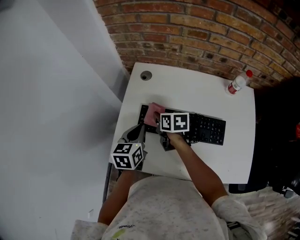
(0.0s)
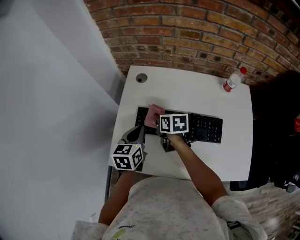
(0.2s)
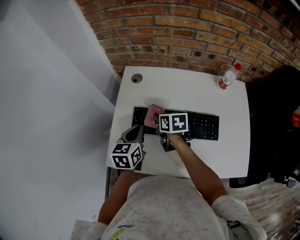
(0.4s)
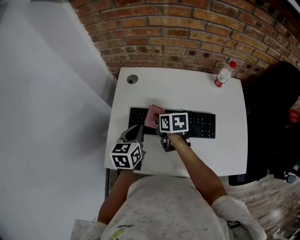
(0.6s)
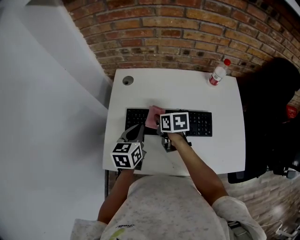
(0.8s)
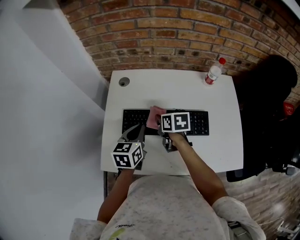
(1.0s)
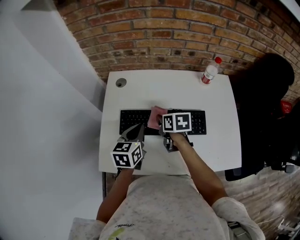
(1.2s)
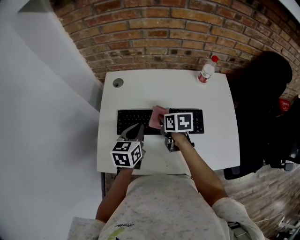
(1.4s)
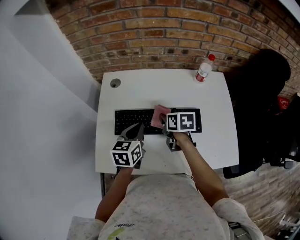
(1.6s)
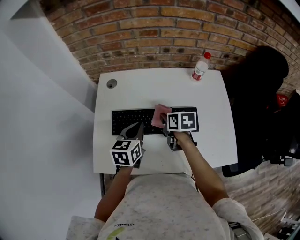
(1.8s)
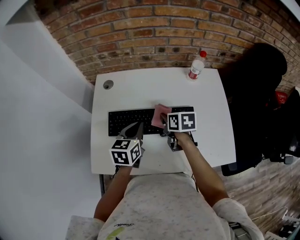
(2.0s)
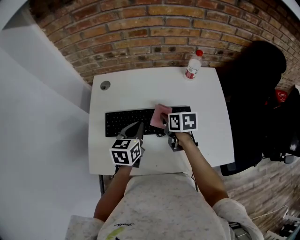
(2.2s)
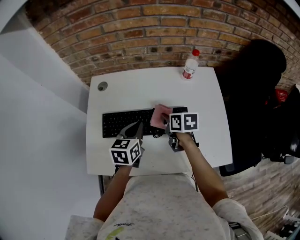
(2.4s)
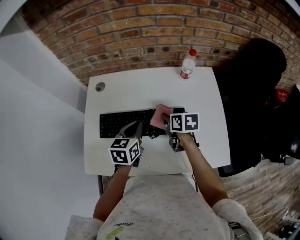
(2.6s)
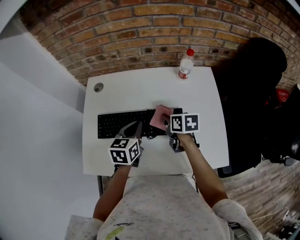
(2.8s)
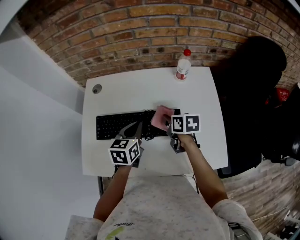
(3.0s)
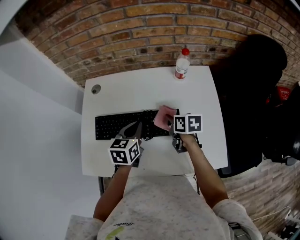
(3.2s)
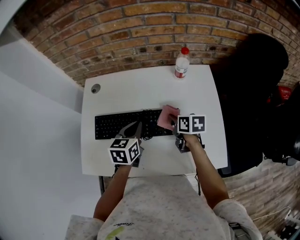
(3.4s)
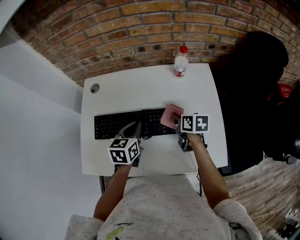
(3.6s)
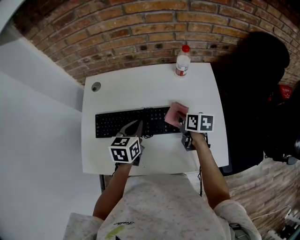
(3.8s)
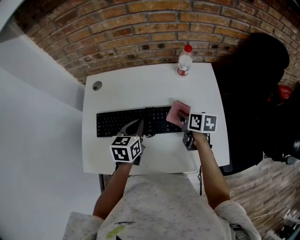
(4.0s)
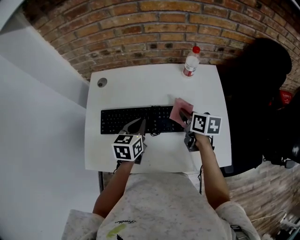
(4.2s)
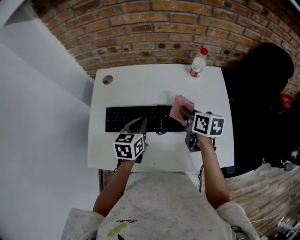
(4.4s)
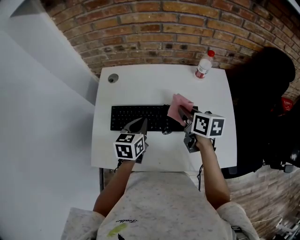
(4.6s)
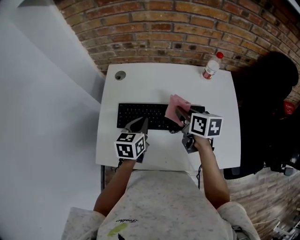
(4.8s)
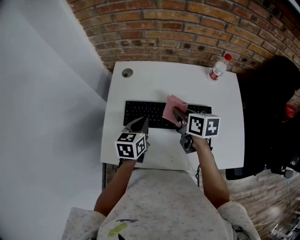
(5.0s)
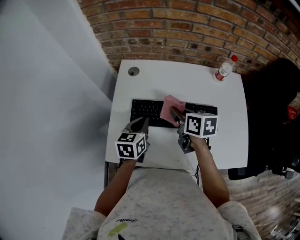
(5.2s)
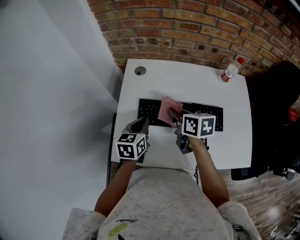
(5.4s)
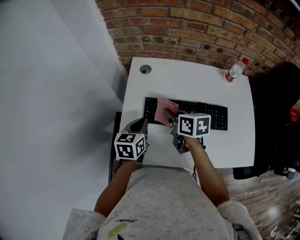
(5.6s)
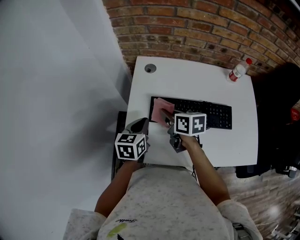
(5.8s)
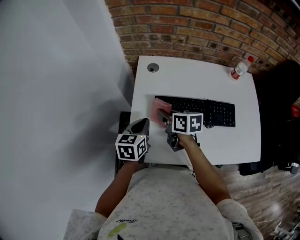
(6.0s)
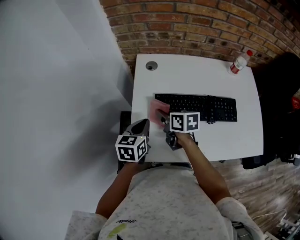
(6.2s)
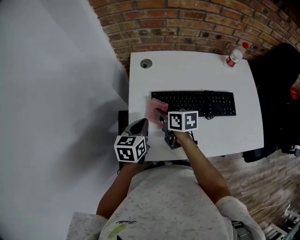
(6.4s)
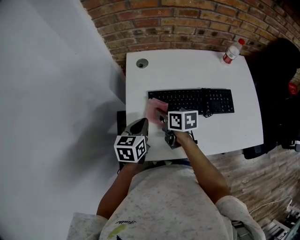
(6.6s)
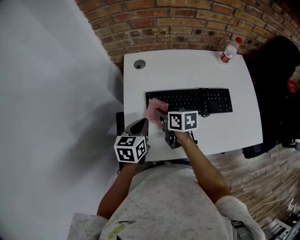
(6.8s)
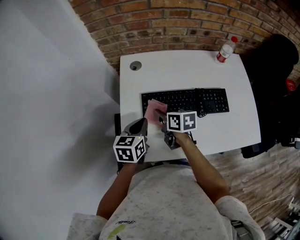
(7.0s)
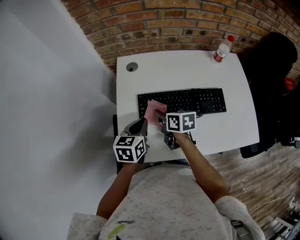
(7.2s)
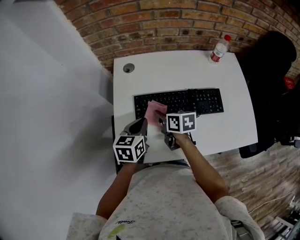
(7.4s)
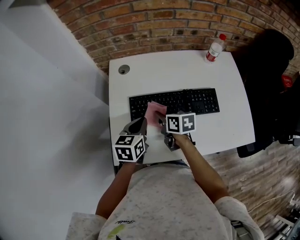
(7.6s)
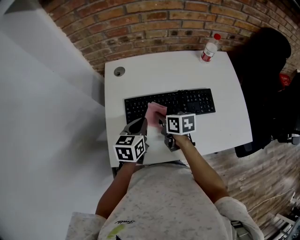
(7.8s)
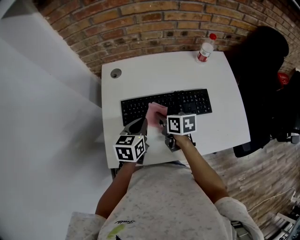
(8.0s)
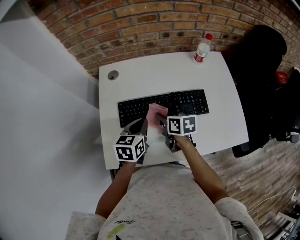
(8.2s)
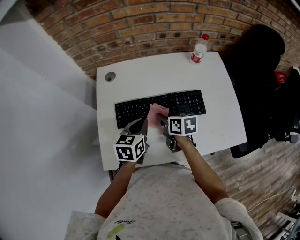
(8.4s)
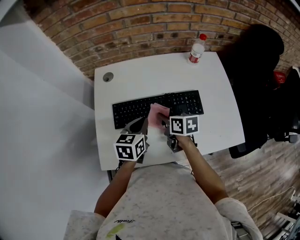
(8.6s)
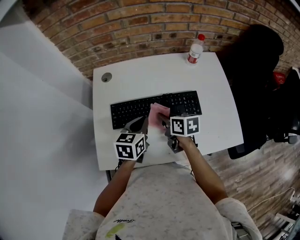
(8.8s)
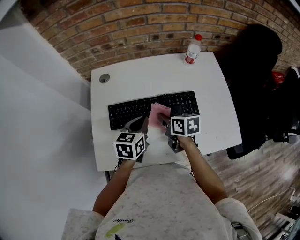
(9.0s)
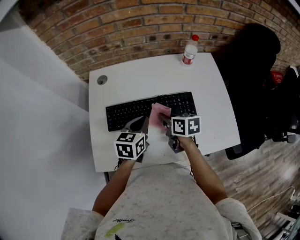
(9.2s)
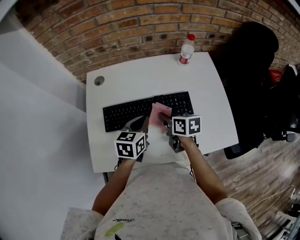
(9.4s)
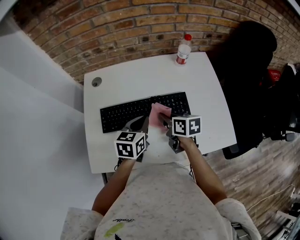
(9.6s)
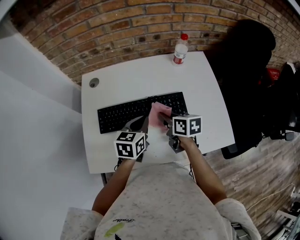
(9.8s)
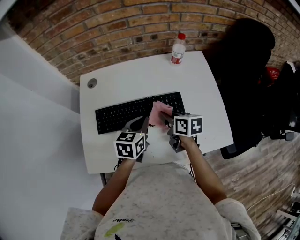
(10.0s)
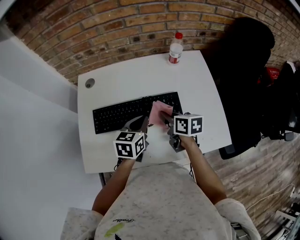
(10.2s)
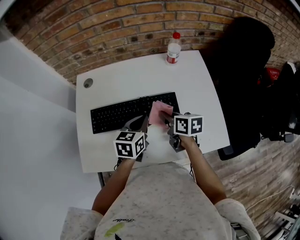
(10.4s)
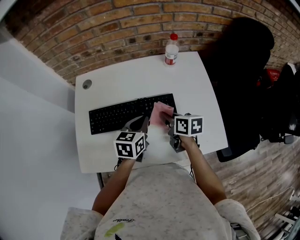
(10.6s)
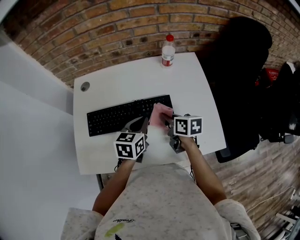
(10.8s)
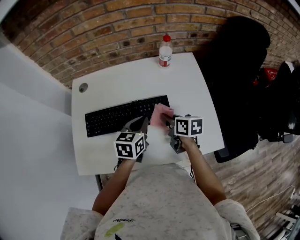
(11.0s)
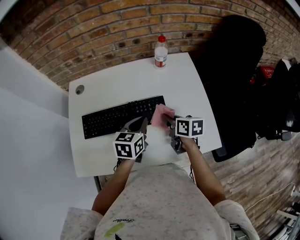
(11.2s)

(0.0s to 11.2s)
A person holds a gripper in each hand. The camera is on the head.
0.0s - 1.6s: Both grippers travel together to the right, roughly 15 cm.
1.6s - 3.2s: Both grippers travel together to the right, some 15 cm.
3.2s - 4.8s: The left gripper shifts roughly 10 cm to the left; the right gripper is displaced to the left and upward by some 15 cm.
4.8s - 6.4s: Both grippers move to the left, roughly 25 cm.
6.4s - 8.0s: Both grippers travel together to the right, some 15 cm.
8.0s - 9.6s: The two grippers go about 15 cm to the right.
9.6s - 11.2s: The grippers both shift to the right by roughly 10 cm.

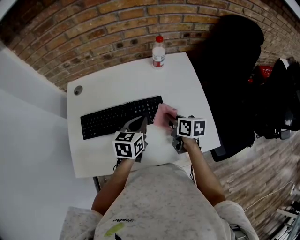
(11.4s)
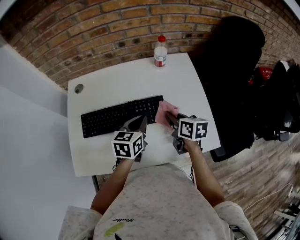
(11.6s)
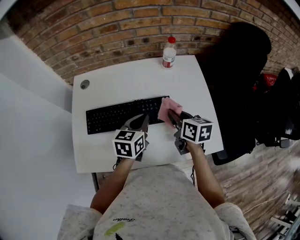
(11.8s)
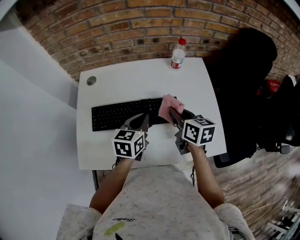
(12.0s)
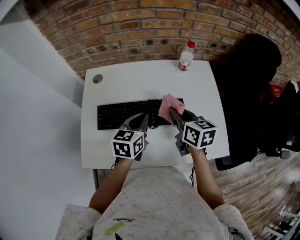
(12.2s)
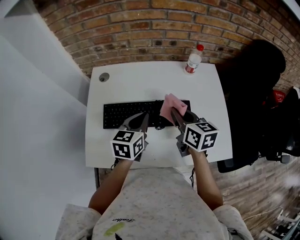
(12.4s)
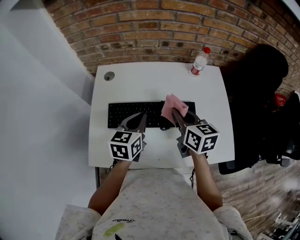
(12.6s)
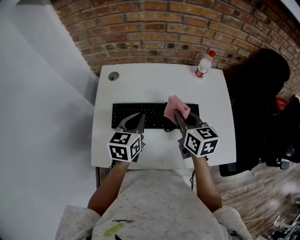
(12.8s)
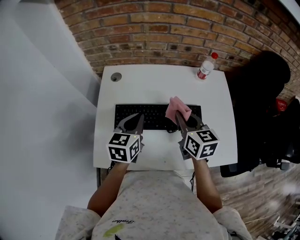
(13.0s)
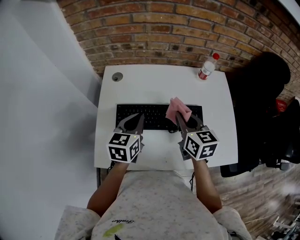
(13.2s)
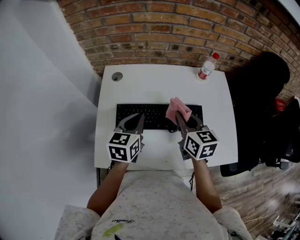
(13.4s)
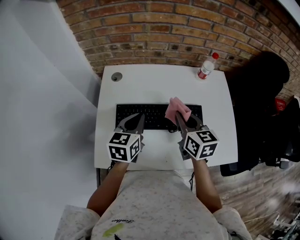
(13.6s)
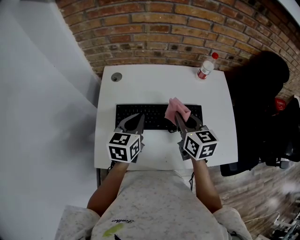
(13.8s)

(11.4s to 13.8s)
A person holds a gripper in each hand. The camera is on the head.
11.4s - 12.6s: The right gripper goes about 20 cm to the left and upward, and turns by roughly 20 degrees; the left gripper heads to the left, covering about 15 cm.
12.6s - 13.8s: The left gripper goes about 5 cm to the left.

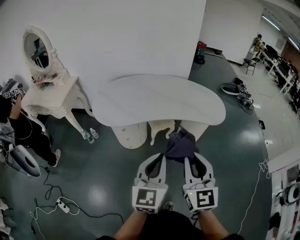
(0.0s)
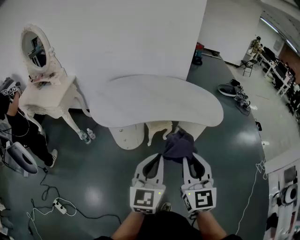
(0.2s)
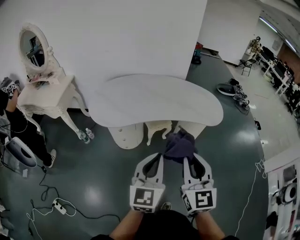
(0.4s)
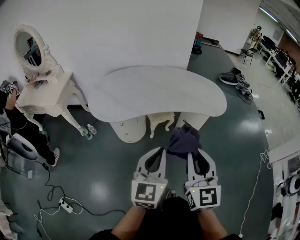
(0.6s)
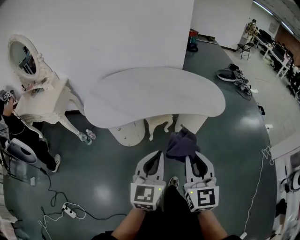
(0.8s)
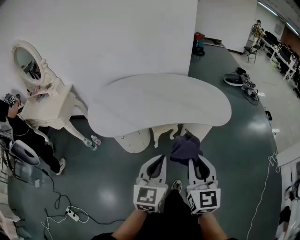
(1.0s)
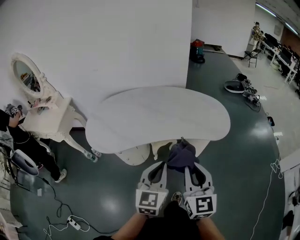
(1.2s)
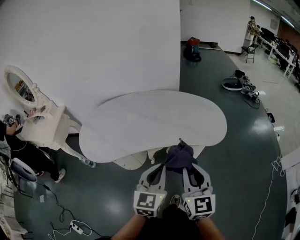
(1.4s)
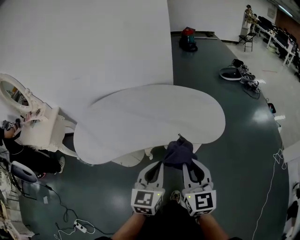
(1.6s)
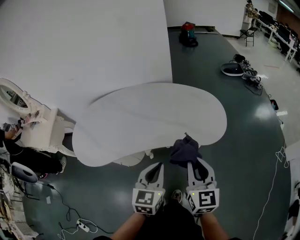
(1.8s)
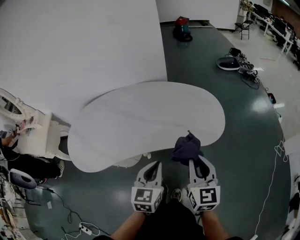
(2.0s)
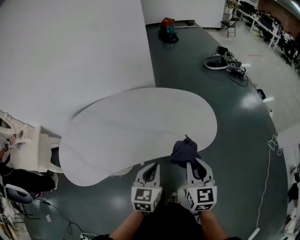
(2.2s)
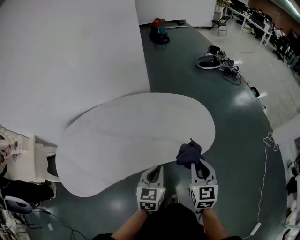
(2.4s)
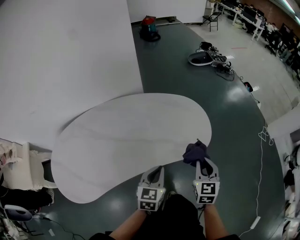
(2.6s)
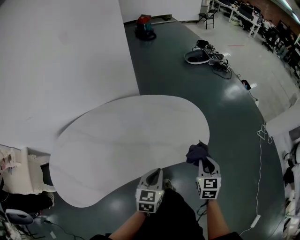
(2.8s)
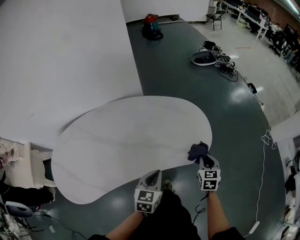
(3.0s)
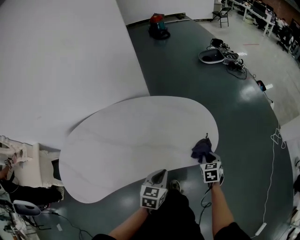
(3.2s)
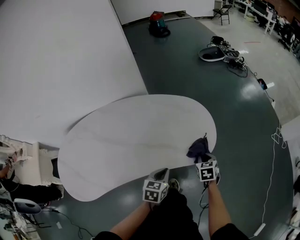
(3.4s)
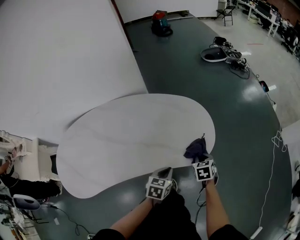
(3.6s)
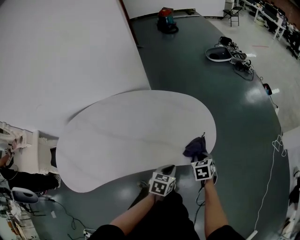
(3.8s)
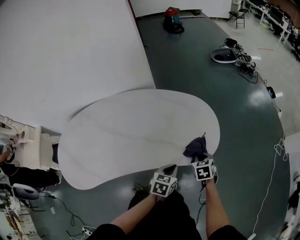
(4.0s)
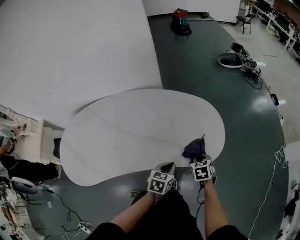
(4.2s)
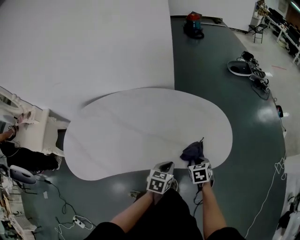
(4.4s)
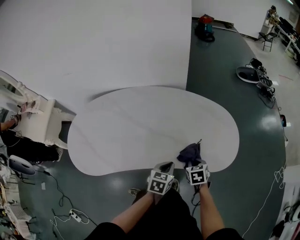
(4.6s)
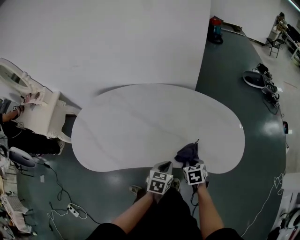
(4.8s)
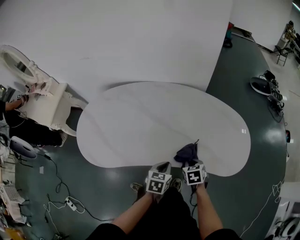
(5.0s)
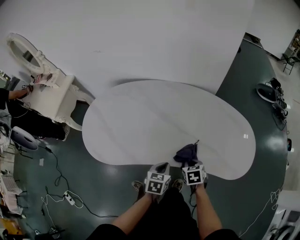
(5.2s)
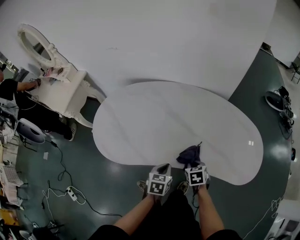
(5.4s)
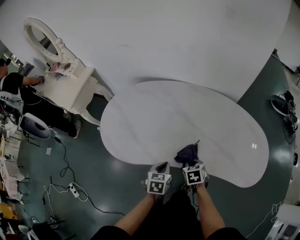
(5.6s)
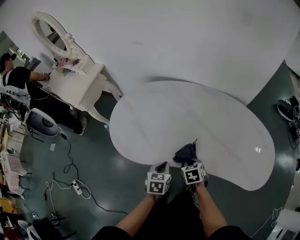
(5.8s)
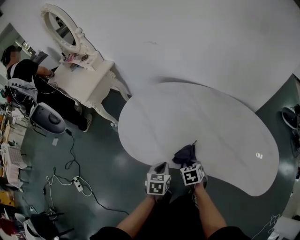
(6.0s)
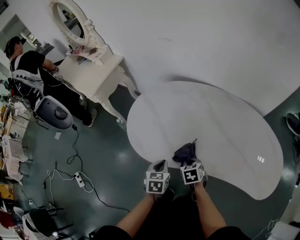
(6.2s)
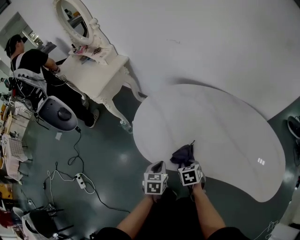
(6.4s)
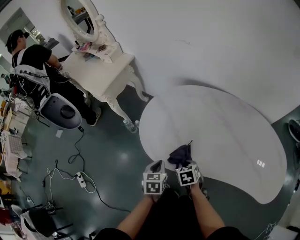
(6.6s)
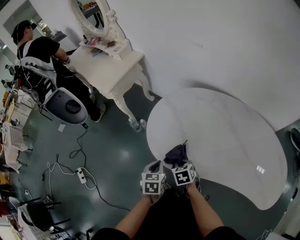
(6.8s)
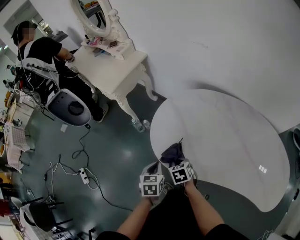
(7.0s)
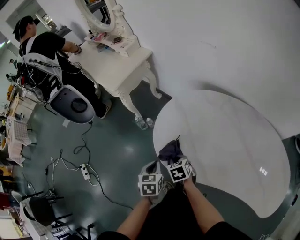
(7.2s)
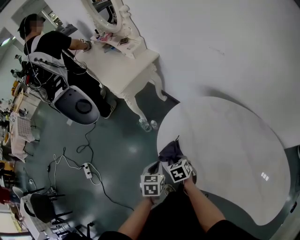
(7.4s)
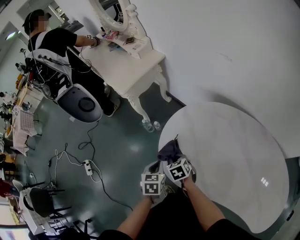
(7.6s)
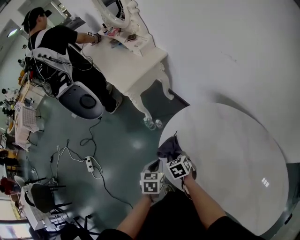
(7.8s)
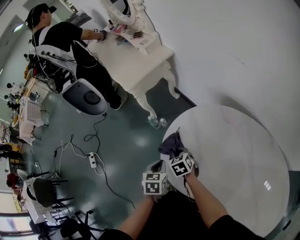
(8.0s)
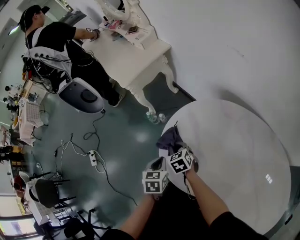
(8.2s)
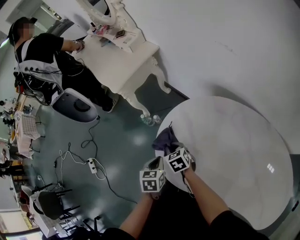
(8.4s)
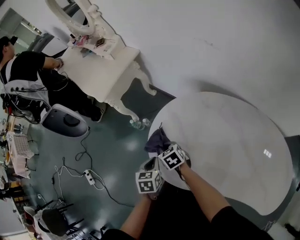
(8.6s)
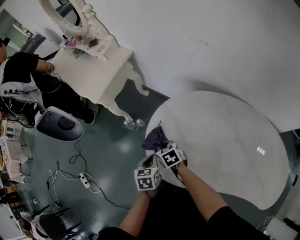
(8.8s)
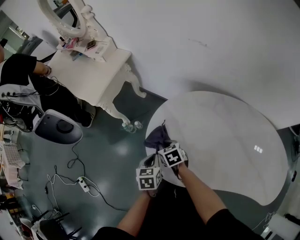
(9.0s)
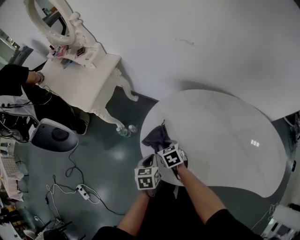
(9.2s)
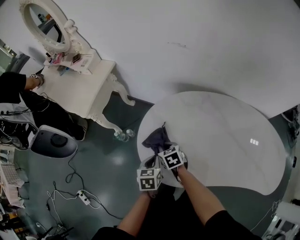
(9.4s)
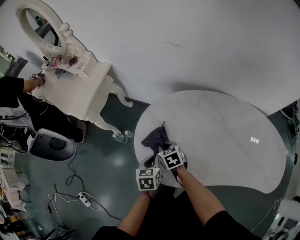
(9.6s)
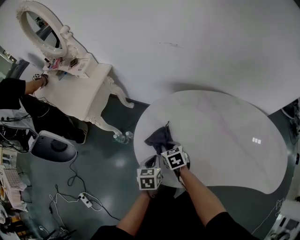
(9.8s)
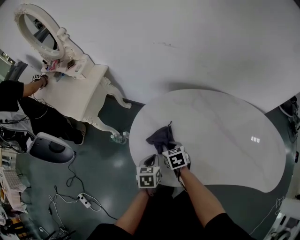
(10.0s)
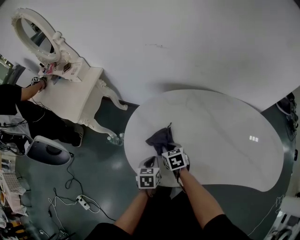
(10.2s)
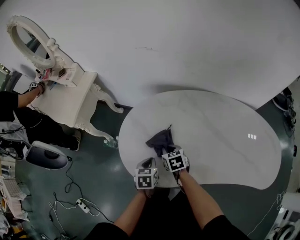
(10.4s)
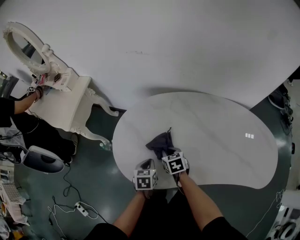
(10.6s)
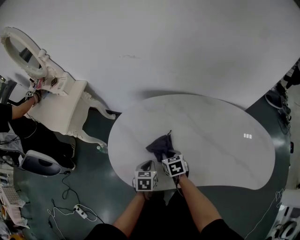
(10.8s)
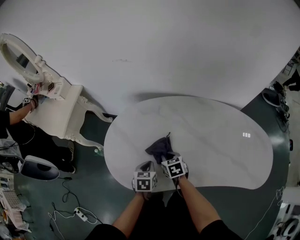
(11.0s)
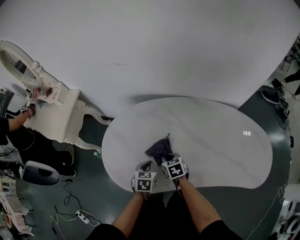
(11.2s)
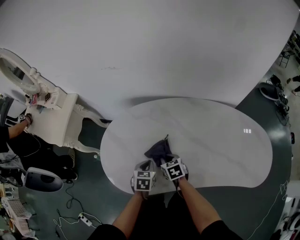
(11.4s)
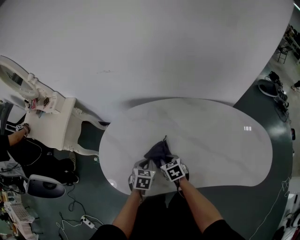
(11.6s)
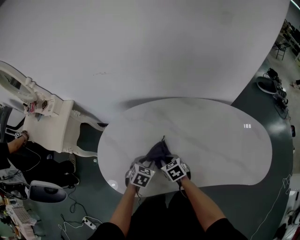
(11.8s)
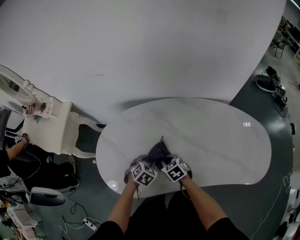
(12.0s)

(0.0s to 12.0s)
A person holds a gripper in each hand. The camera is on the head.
0.0s - 1.6s: Both grippers travel together forward and to the right, roughly 25 cm.
1.6s - 3.0s: The right gripper changes place by some 35 cm, and points its fingers roughly 30 degrees further downward, while the left gripper moves roughly 20 cm, and swivels approximately 30 degrees.
3.0s - 4.4s: The right gripper goes about 15 cm to the left and downward, and changes its angle by roughly 30 degrees. Meanwhile the left gripper shifts approximately 10 cm downward.
4.4s - 6.0s: Both grippers are carried roughly 40 cm. The left gripper changes its angle by roughly 40 degrees. Meanwhile the right gripper swivels roughly 30 degrees.
6.0s - 7.6s: The right gripper changes place by roughly 35 cm, and changes its angle by some 30 degrees; the left gripper ends up approximately 25 cm from where it was, and swivels some 20 degrees.
7.6s - 9.0s: The grippers both shift forward by approximately 10 cm.
9.0s - 10.4s: Both grippers travel together to the right, roughly 15 cm.
10.4s - 12.0s: The two grippers go approximately 15 cm to the right. The left gripper rotates around the line of its fingers by about 50 degrees, clockwise from behind, and opens.
